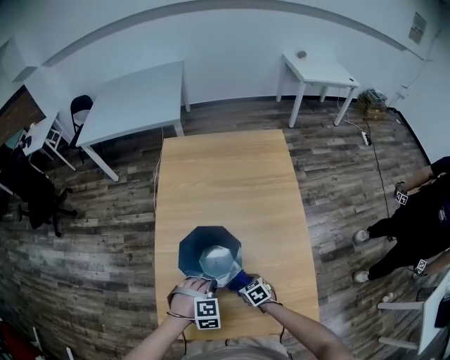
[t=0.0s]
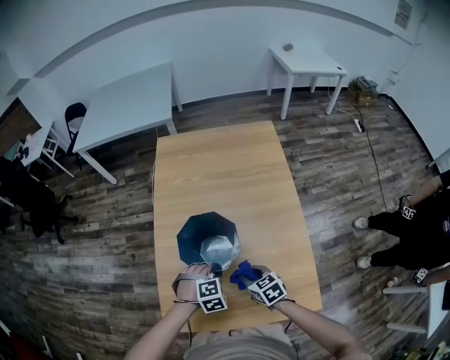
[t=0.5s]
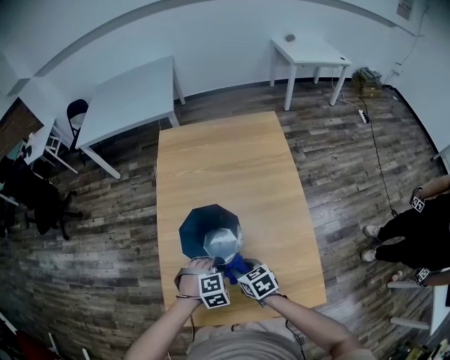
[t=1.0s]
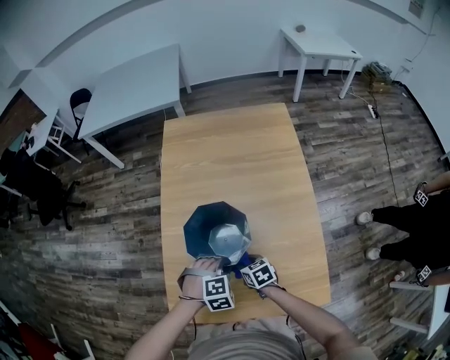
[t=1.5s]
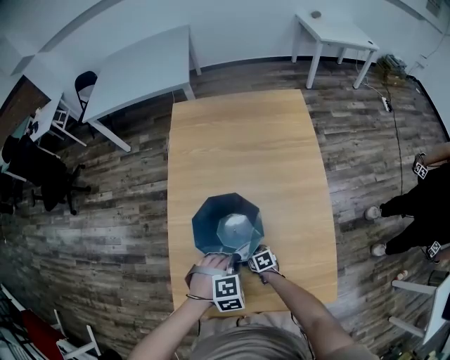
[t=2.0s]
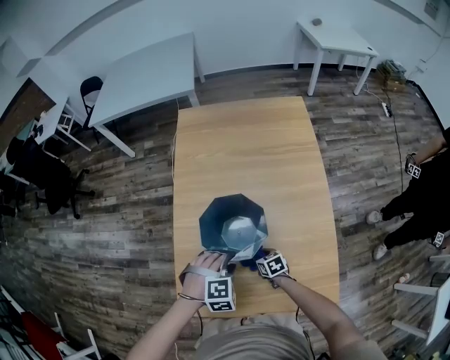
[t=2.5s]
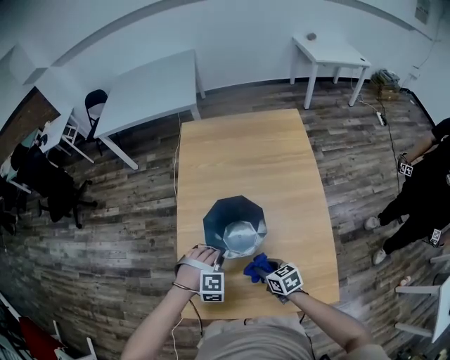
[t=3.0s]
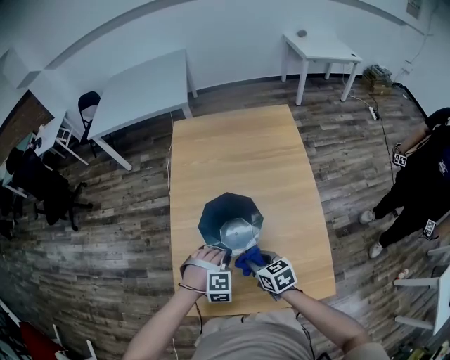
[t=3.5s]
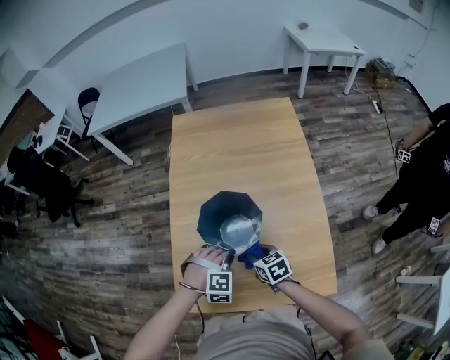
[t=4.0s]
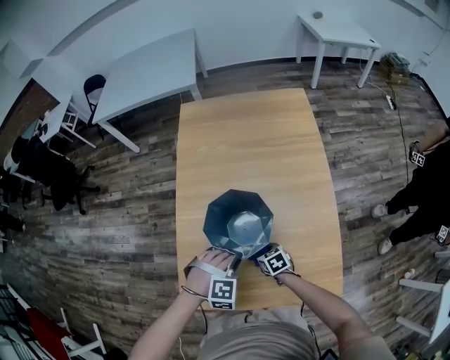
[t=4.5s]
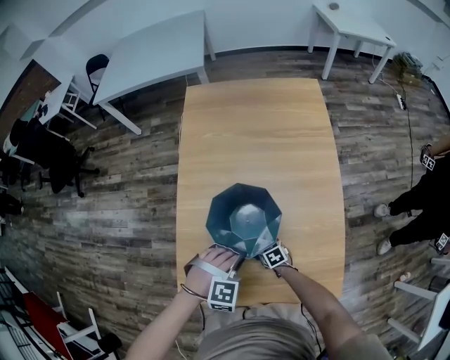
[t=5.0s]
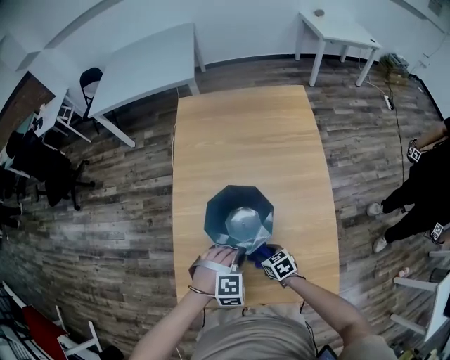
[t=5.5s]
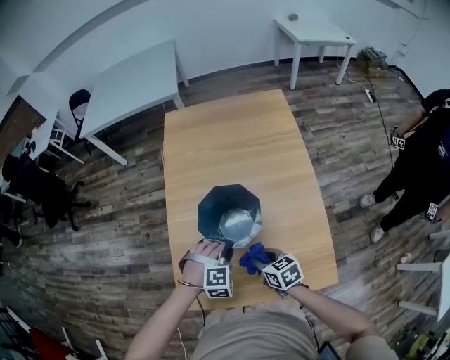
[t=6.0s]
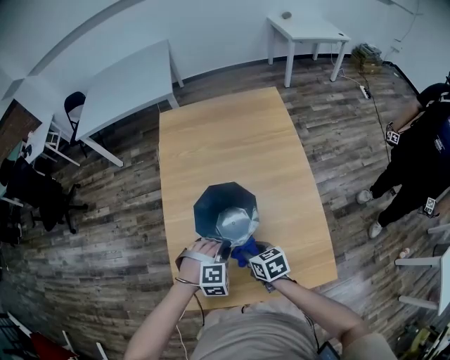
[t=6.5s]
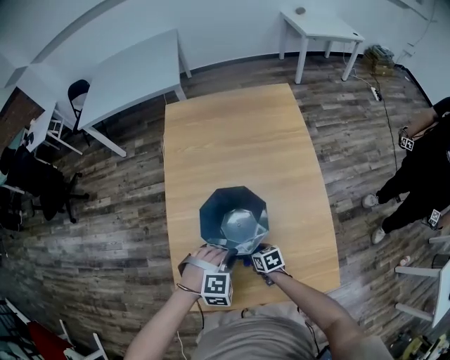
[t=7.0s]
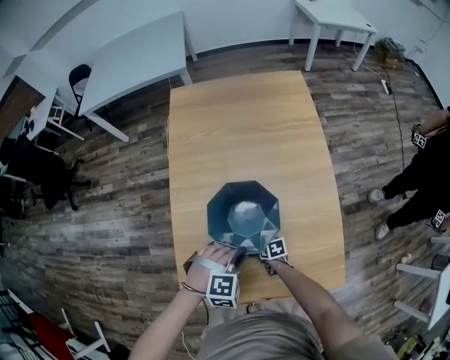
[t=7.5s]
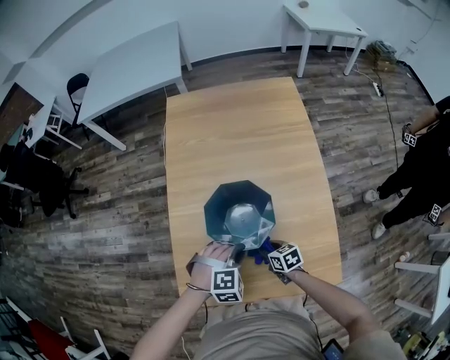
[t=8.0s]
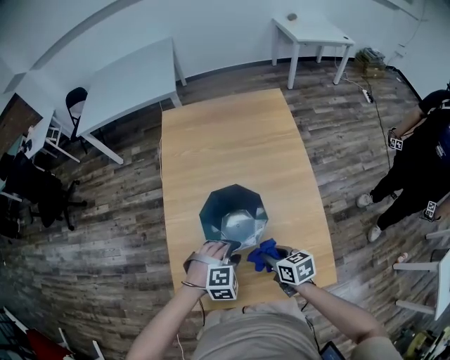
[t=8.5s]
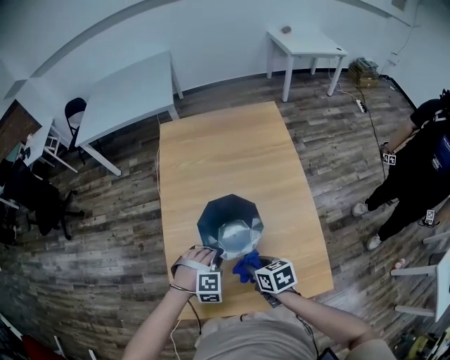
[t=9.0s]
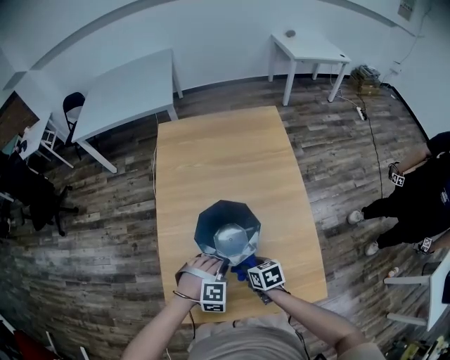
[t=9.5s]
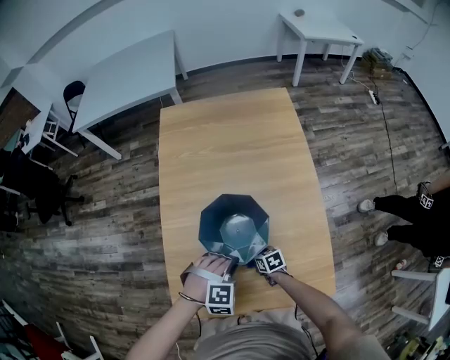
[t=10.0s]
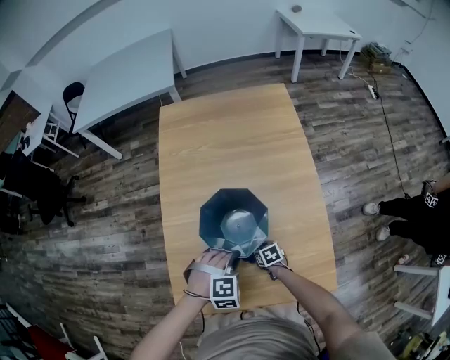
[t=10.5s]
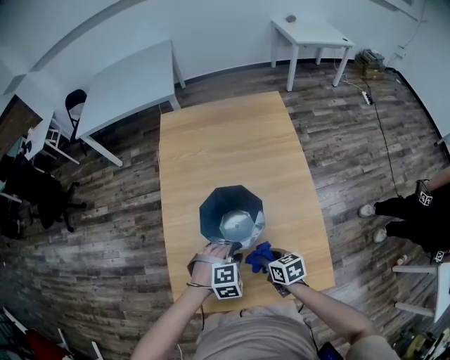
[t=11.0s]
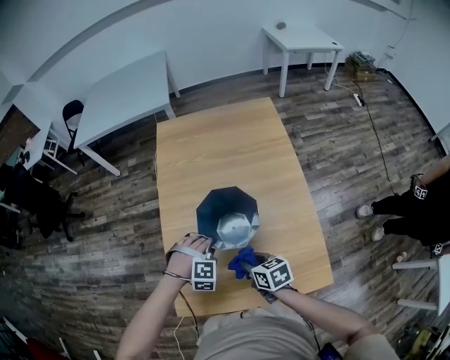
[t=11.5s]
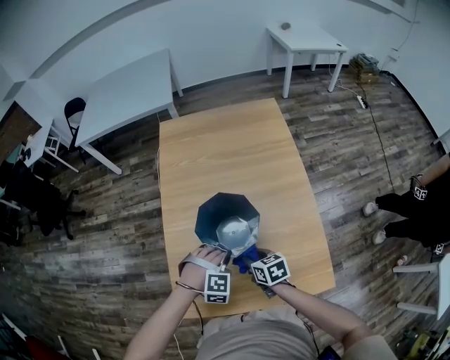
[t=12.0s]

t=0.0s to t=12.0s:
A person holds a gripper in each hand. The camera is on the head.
t=0.0s to t=2.0s: The right gripper goes upward and returns, approximately 15 cm each way.
t=2.0s to t=4.0s: The right gripper travels upward by approximately 20 cm. The left gripper moves roughly 10 cm to the left and comes back, and opens and closes again.
t=4.0s to t=6.0s: The right gripper travels downward and back again, roughly 20 cm each way.
t=6.0s to t=8.0s: The right gripper is displaced downward by approximately 15 cm.
t=8.0s to t=10.0s: The left gripper opens, then closes again. Meanwhile the right gripper moves approximately 15 cm upward and comes back.
t=10.0s to t=12.0s: The left gripper opens, then closes again. The right gripper is displaced upward by approximately 20 cm.

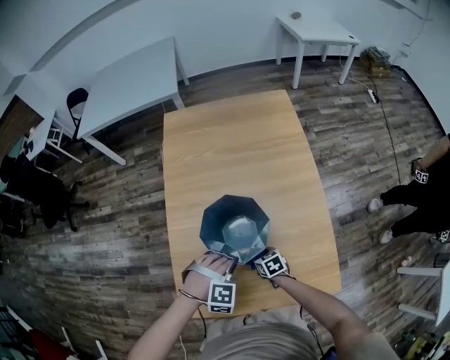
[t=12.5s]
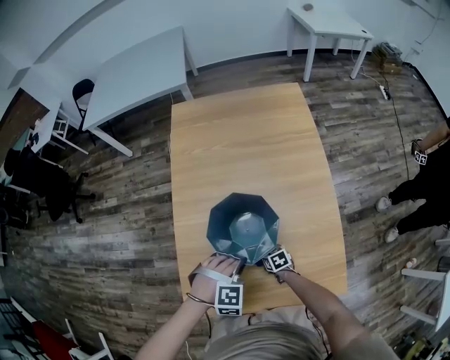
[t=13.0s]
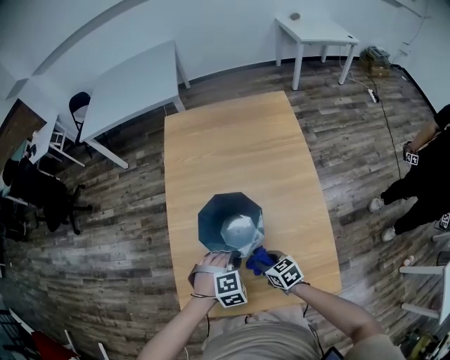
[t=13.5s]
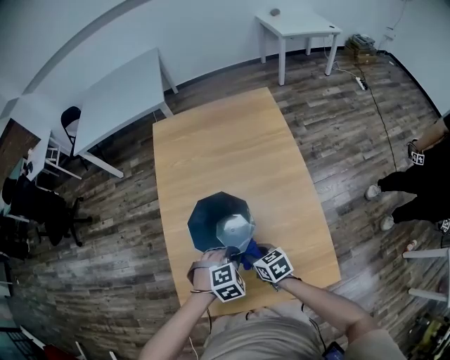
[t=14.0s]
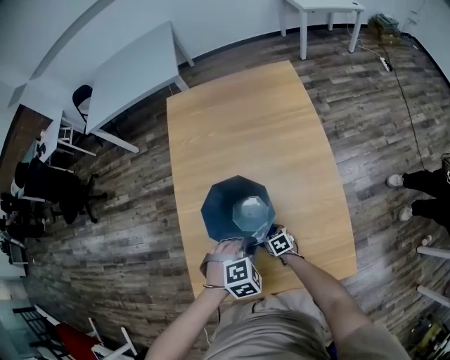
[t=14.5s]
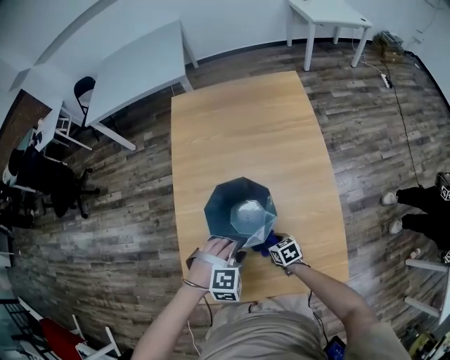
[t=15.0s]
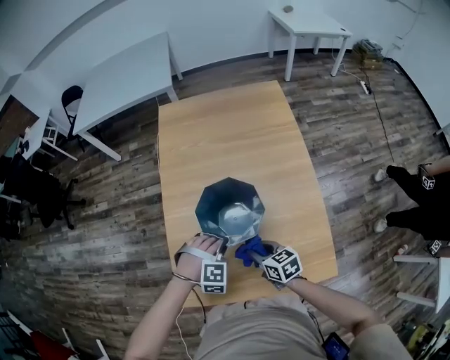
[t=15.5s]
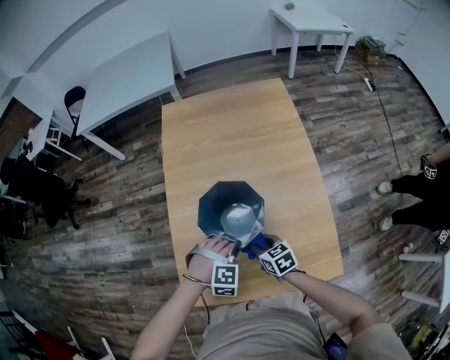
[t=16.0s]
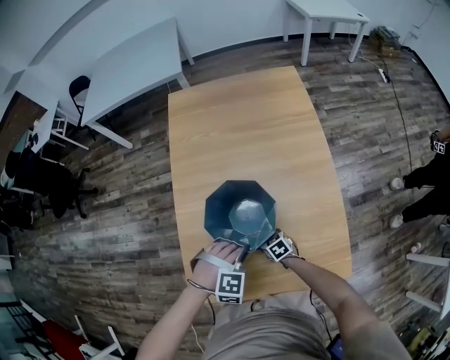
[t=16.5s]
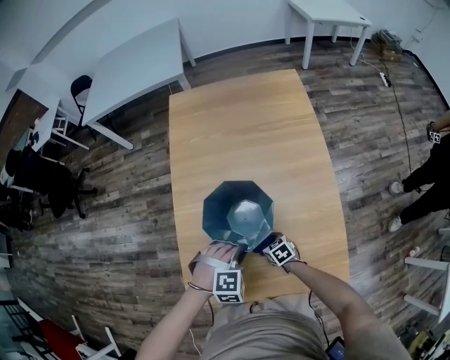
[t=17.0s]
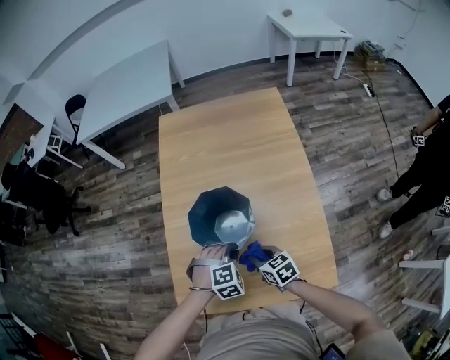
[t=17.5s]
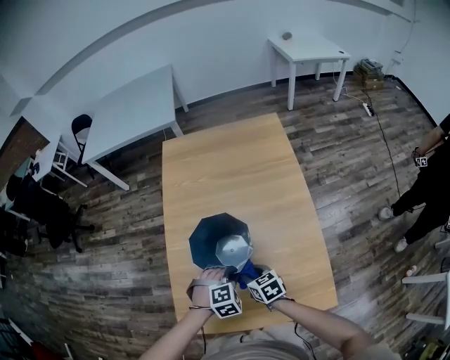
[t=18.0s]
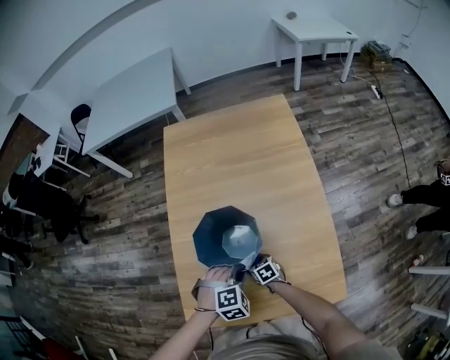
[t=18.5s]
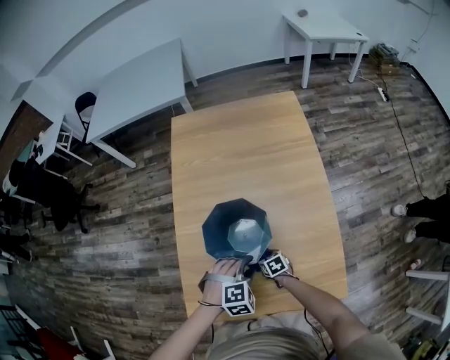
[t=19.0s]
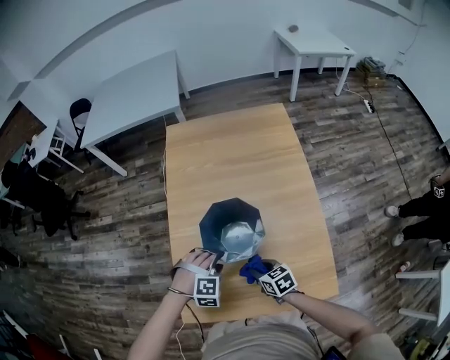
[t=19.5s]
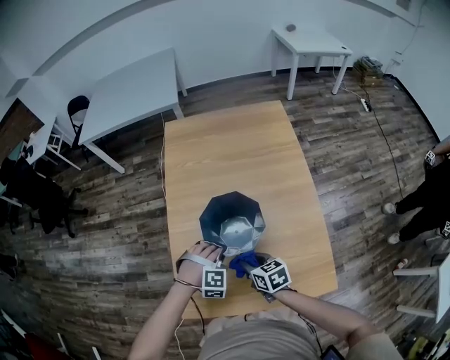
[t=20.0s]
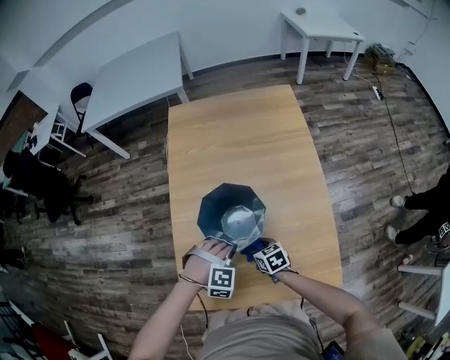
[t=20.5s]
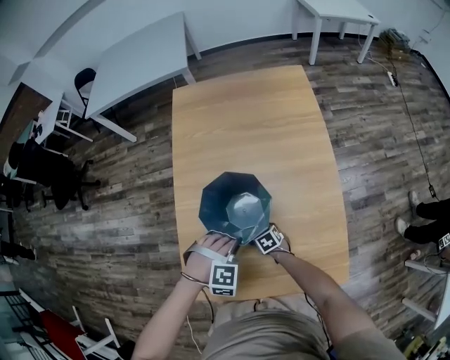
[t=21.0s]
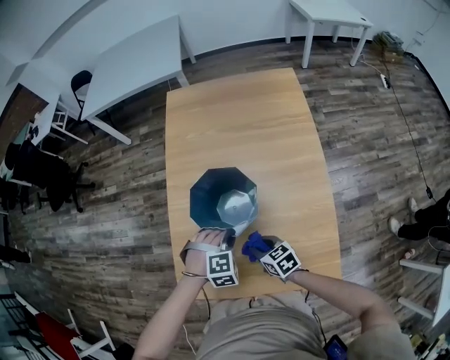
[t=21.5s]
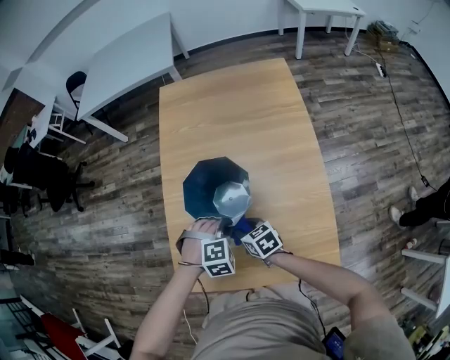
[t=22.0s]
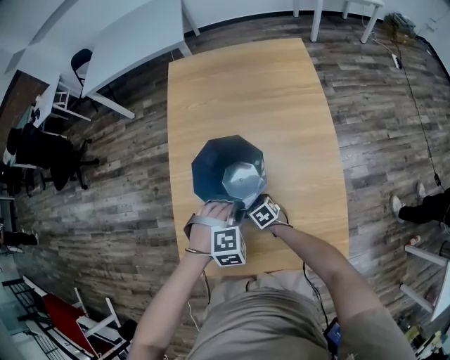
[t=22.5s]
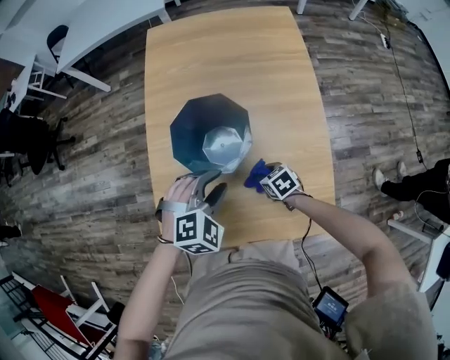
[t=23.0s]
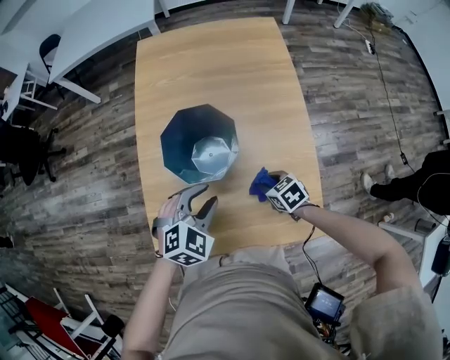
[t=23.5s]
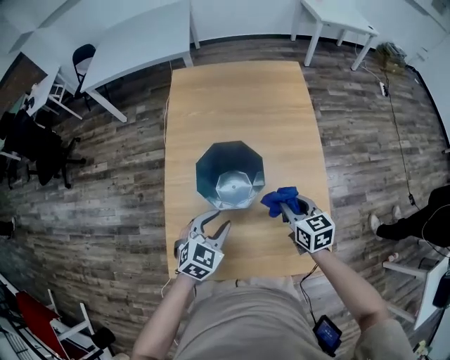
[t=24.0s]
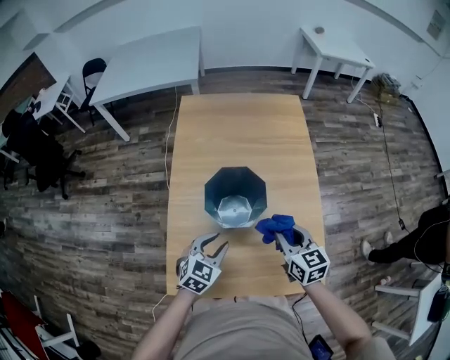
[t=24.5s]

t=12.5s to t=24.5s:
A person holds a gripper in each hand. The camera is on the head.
t=12.5s to t=14.5s: The right gripper goes up and down, about 20 cm each way, reversing 2 times, while the left gripper travels to the right by some 5 cm, and turns by roughly 30 degrees.
t=14.5s to t=16.5s: The right gripper travels upward and back again, about 25 cm each way. Meanwhile the left gripper moves to the left, some 5 cm, changes its angle by about 30 degrees, and opens, then closes once more.
t=16.5s to t=18.5s: The left gripper swivels roughly 20 degrees. Meanwhile the right gripper moves approximately 20 cm upward and comes back.
t=18.5s to t=20.5s: The left gripper goes roughly 5 cm to the left, swivels about 30 degrees, and opens and closes again; the right gripper is displaced upward by approximately 10 cm.
t=20.5s to t=22.5s: The right gripper goes up and down, roughly 20 cm each way, reversing 2 times, while the left gripper heads to the right, covering roughly 5 cm, and rotates roughly 20 degrees.
t=22.5s to t=24.5s: The left gripper goes about 10 cm to the left and upward, rotates around the line of its fingers by about 50 degrees, counterclockwise from behind, and opens up. Meanwhile the right gripper heads upward, covering approximately 35 cm, and tips its fingers upward by about 30 degrees.

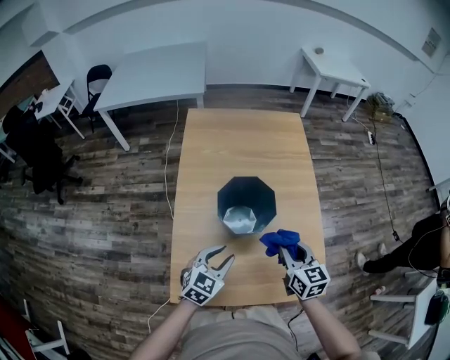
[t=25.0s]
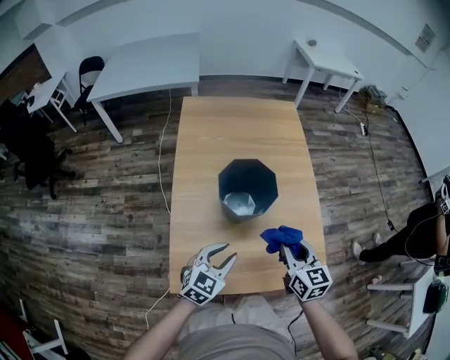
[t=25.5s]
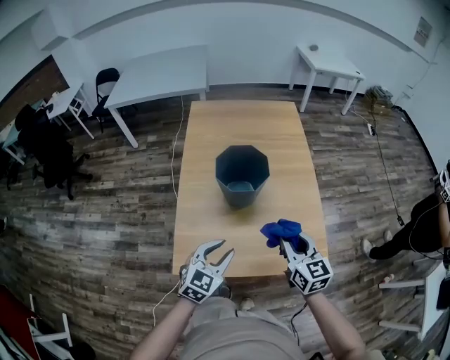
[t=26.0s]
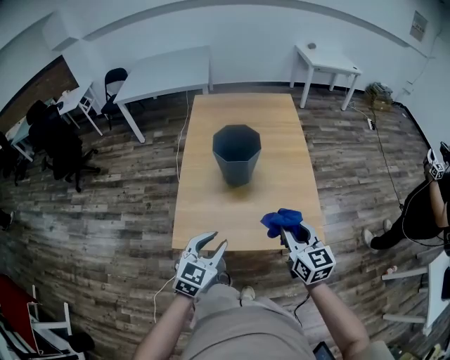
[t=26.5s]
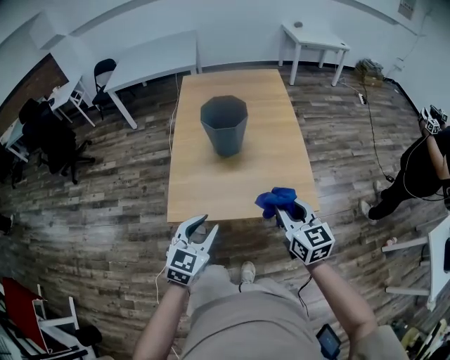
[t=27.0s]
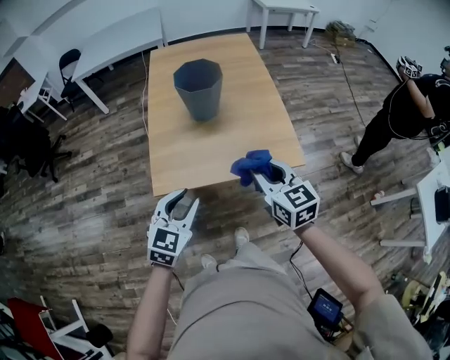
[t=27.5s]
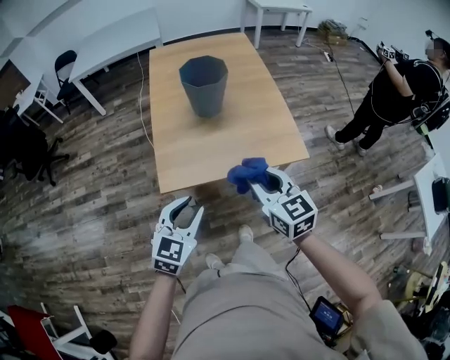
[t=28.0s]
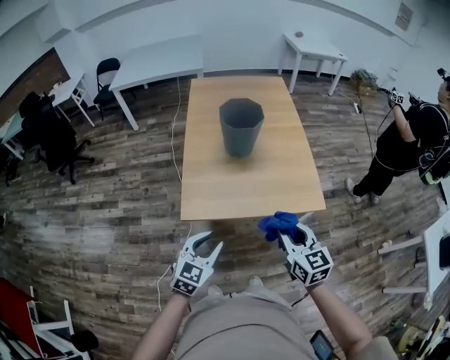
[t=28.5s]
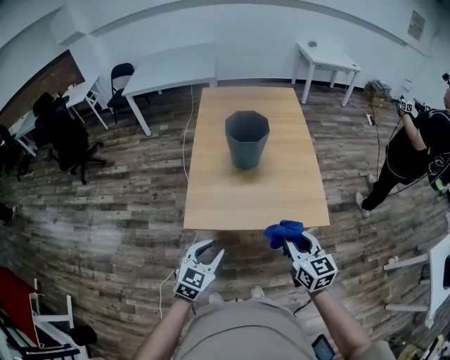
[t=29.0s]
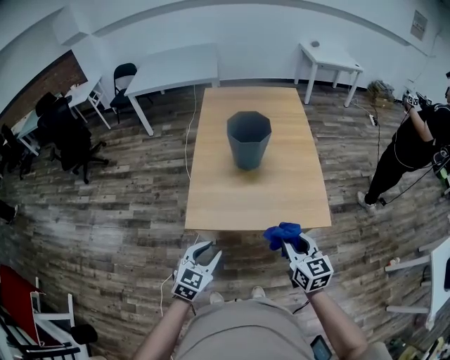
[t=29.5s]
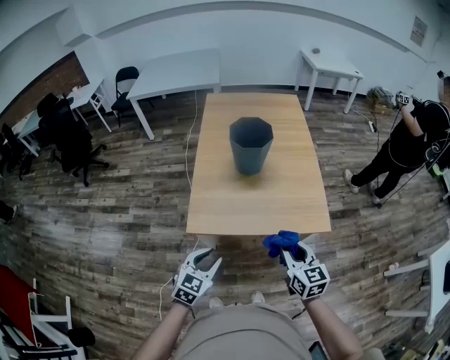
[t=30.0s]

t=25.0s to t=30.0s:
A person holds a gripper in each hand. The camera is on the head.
t=25.0s to t=27.5s: The two grippers go about 40 cm backward.
t=27.5s to t=30.0s: The right gripper changes place by some 5 cm, while the left gripper shifts about 5 cm downward.
